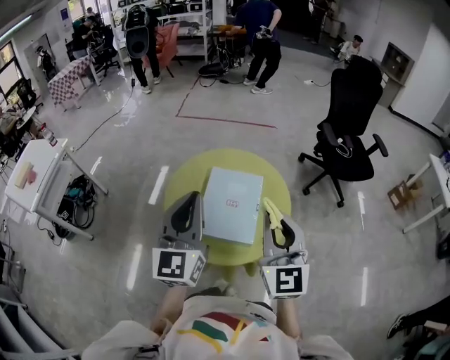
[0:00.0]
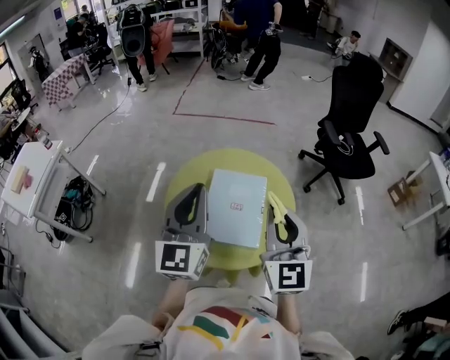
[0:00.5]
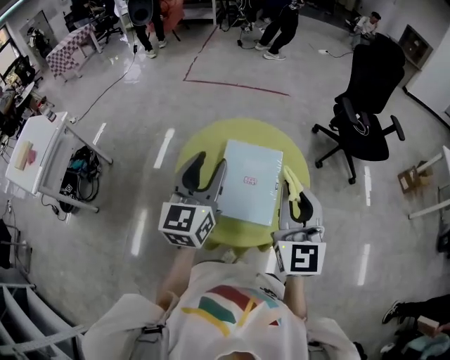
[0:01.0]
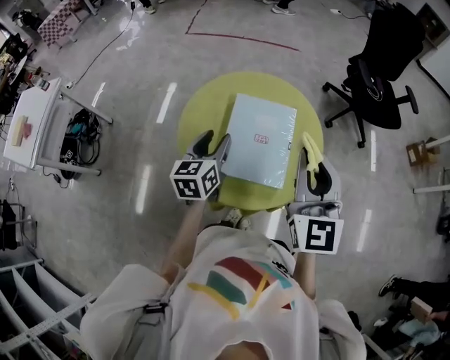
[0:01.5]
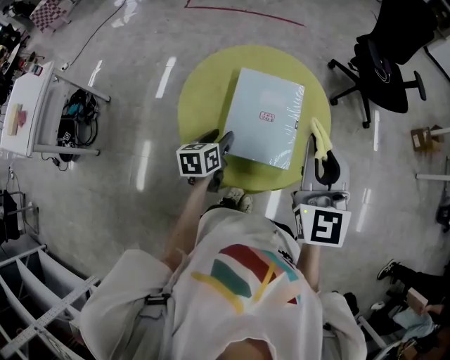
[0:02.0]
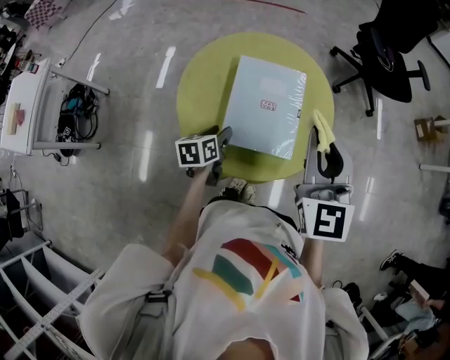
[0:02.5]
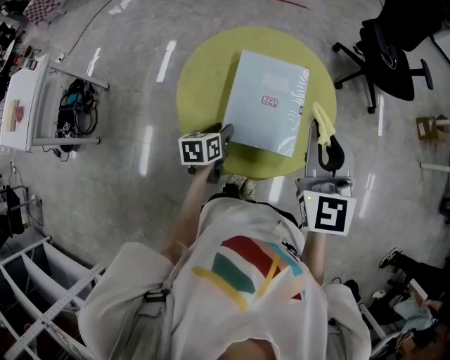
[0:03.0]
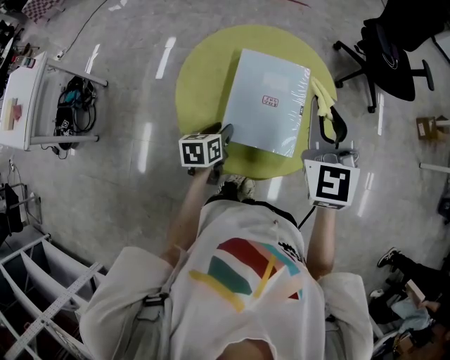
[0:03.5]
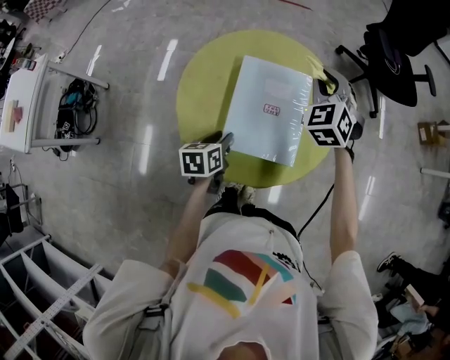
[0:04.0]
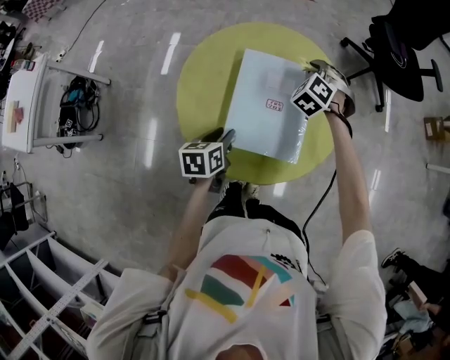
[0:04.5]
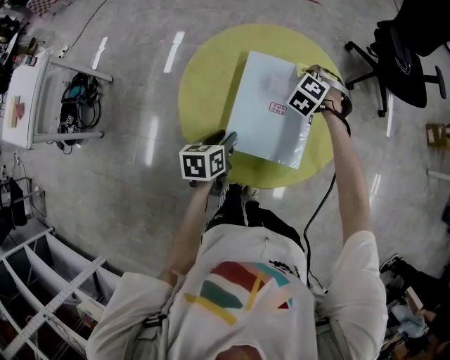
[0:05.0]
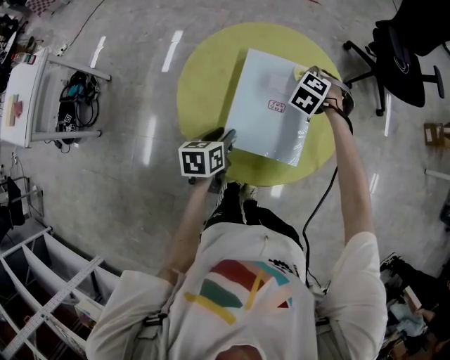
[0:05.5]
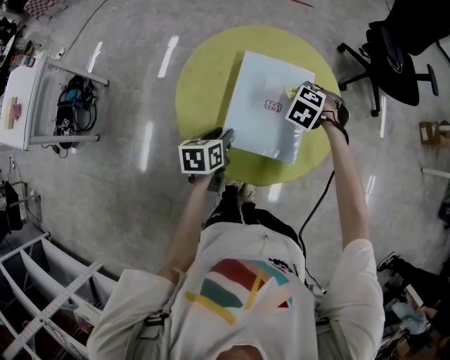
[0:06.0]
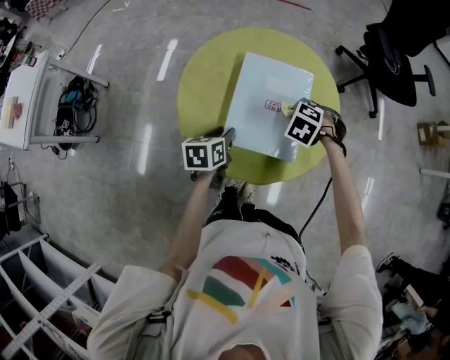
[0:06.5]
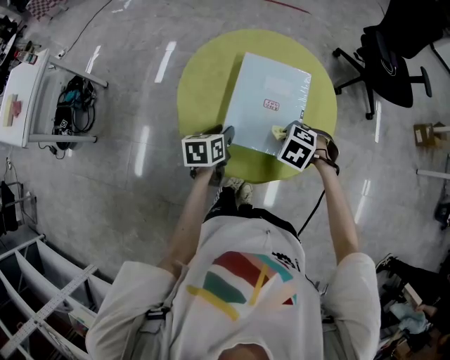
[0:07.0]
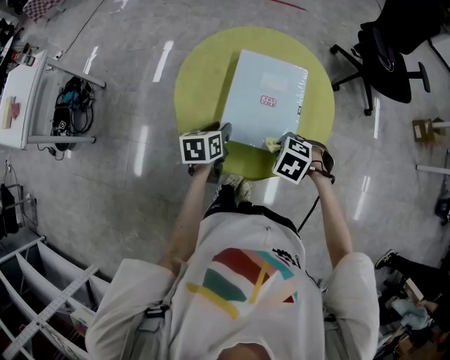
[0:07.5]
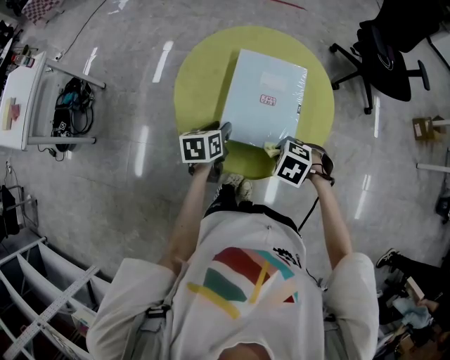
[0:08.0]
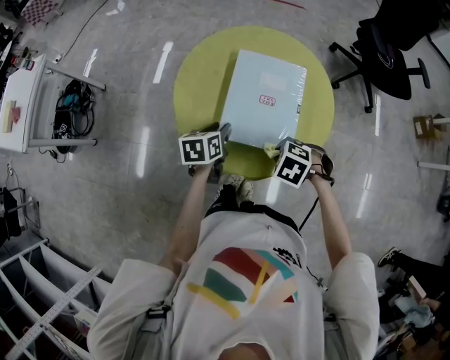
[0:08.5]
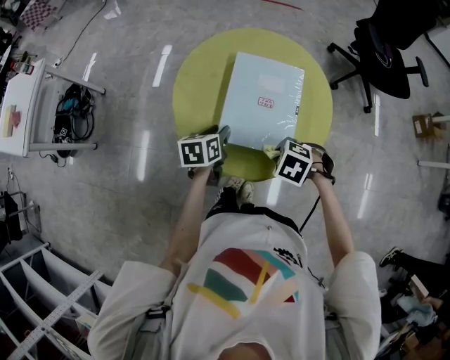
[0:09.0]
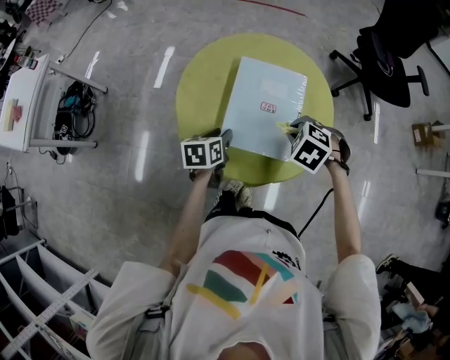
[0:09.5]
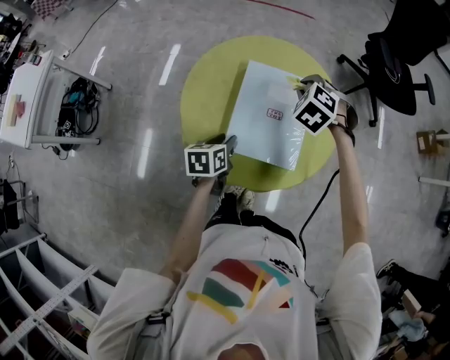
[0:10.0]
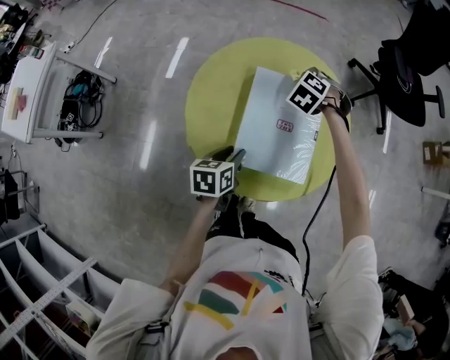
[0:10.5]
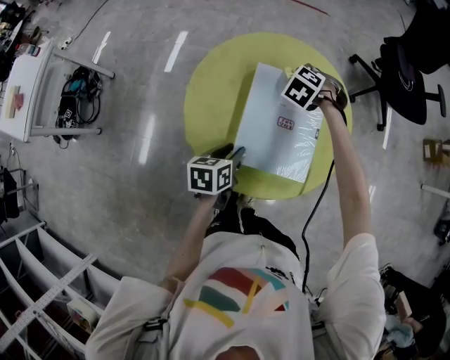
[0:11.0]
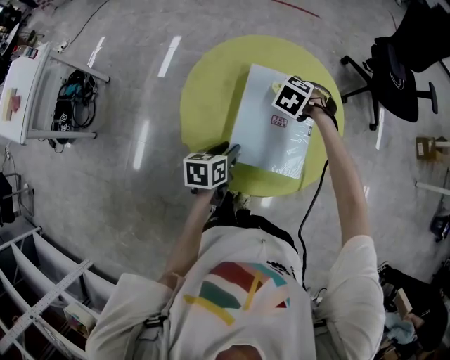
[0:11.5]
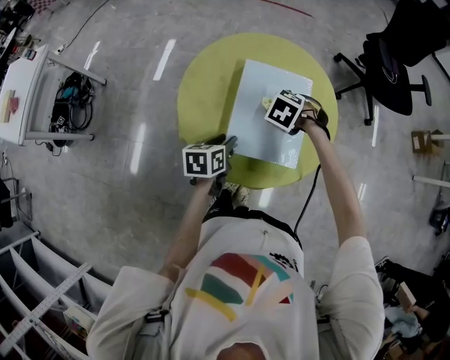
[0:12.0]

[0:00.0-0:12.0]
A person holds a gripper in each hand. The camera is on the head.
0:00.0 to 0:02.0: The left gripper goes roughly 35 cm downward, points its fingers approximately 50 degrees further downward, and opens, while the right gripper shifts some 5 cm forward.
0:02.0 to 0:04.0: The right gripper heads forward and downward, covering approximately 25 cm, and turns by some 40 degrees.
0:04.0 to 0:06.0: The right gripper travels downward by approximately 20 cm, and angles its fingers downward, by some 40 degrees.
0:06.0 to 0:08.0: The right gripper ends up approximately 20 cm from where it was, and changes its angle by some 20 degrees.
0:08.0 to 0:10.0: The right gripper moves some 25 cm, and swivels some 30 degrees.
0:10.0 to 0:12.0: The right gripper shifts approximately 10 cm downward, and turns by some 20 degrees.

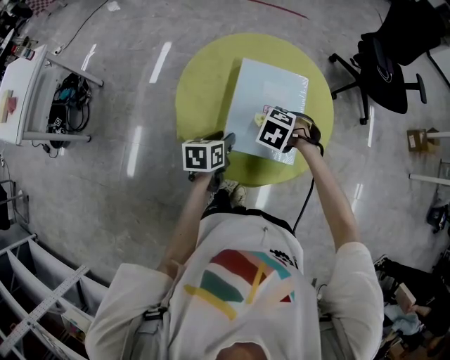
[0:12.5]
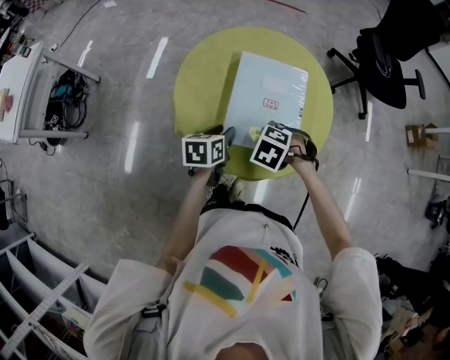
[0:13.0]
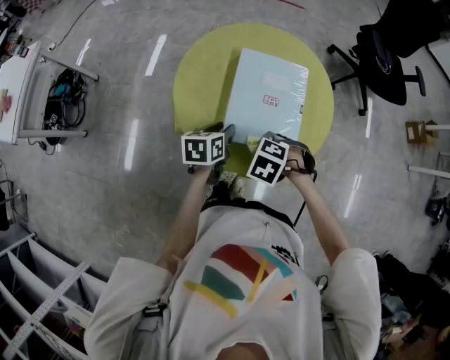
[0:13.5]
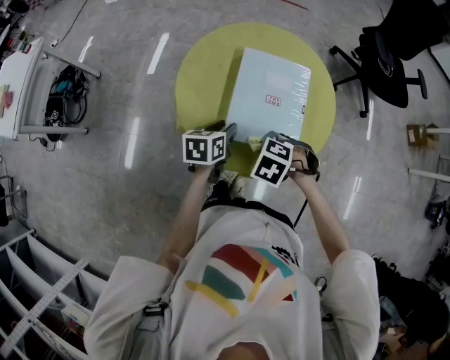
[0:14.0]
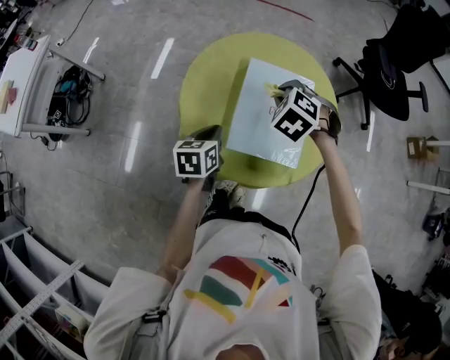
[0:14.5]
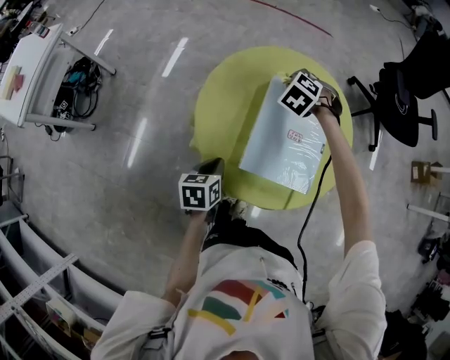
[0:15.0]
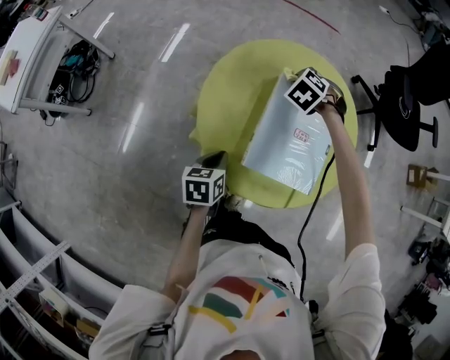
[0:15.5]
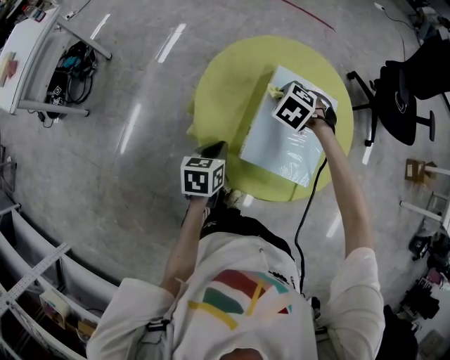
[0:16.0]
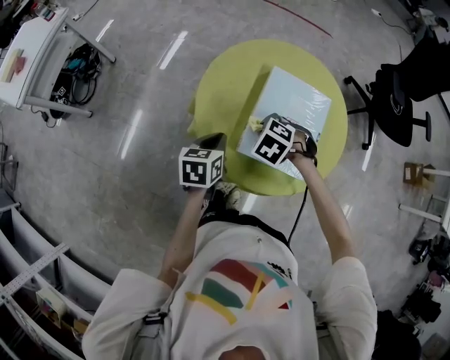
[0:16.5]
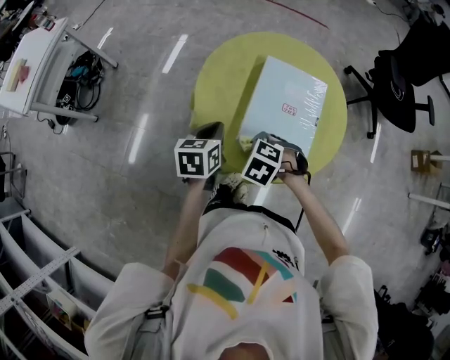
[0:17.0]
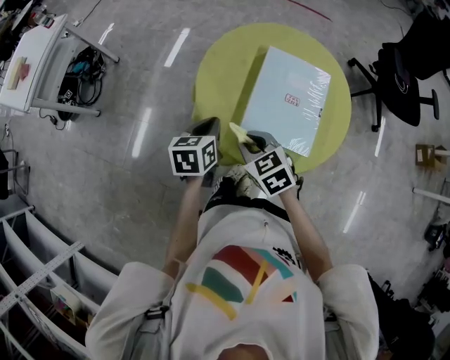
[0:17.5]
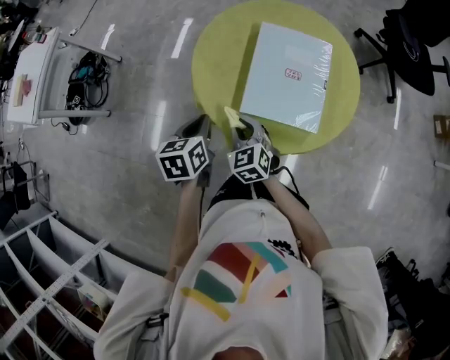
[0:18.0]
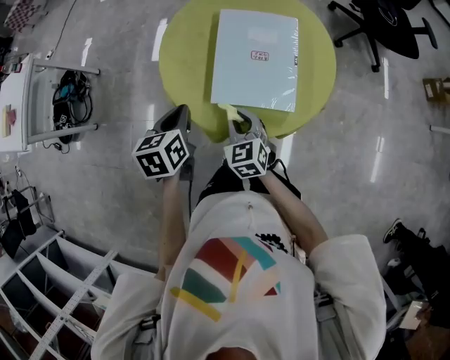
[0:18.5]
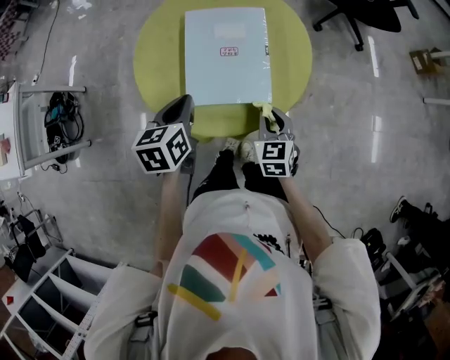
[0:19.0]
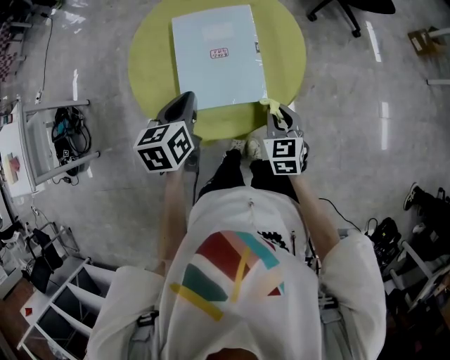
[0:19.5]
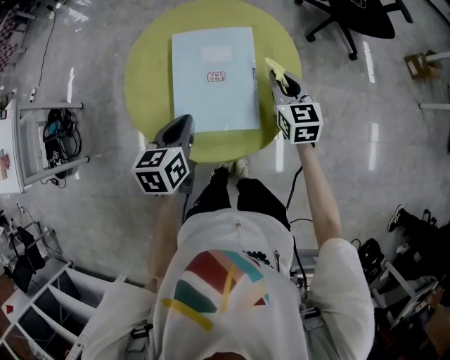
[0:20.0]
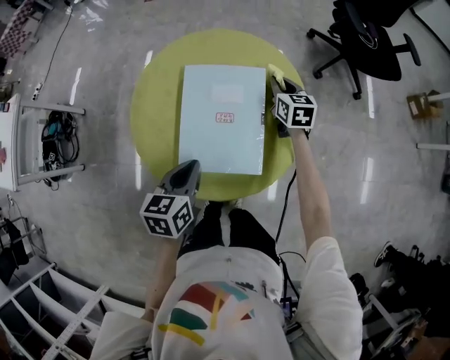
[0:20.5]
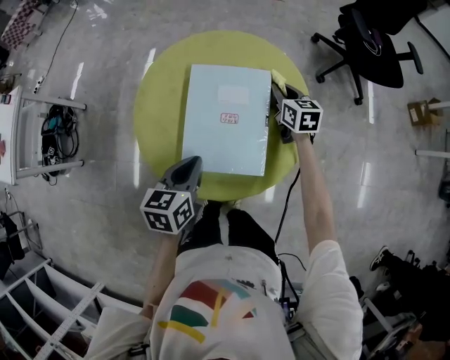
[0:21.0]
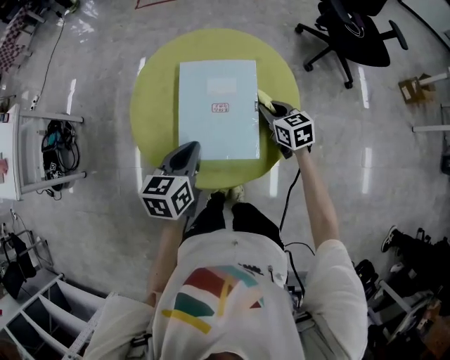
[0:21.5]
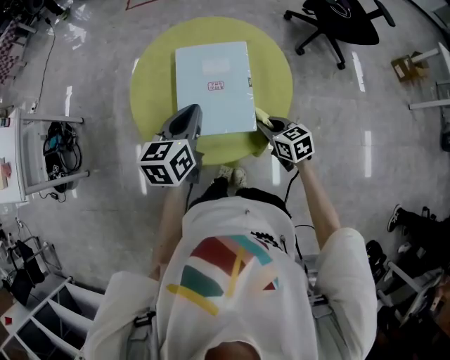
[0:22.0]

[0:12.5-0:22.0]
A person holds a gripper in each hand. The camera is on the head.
0:12.5 to 0:14.5: The right gripper heads upward, covering approximately 10 cm, and rotates about 20 degrees. The left gripper ends up approximately 5 cm from where it was, and closes.
0:14.5 to 0:16.5: The right gripper shifts by some 15 cm.
0:16.5 to 0:18.0: The left gripper changes place by about 5 cm. The right gripper changes place by roughly 10 cm, and tilts its fingers some 40 degrees upward.
0:18.0 to 0:20.0: The left gripper moves to the right and forward, about 15 cm; the right gripper is displaced to the right and forward by some 35 cm, and swivels approximately 30 degrees.
0:20.0 to 0:22.0: The left gripper travels upward by roughly 5 cm. The right gripper moves backward and downward, roughly 15 cm, and changes its angle by about 30 degrees.

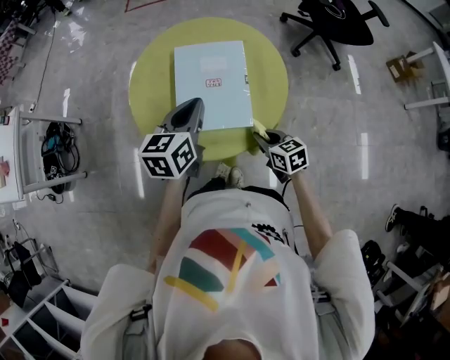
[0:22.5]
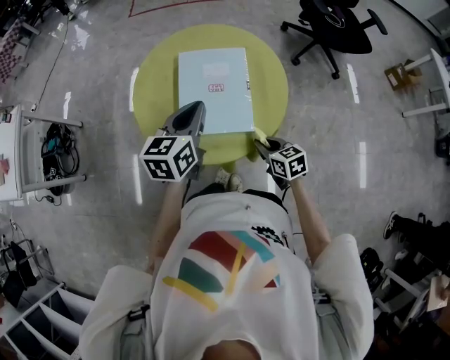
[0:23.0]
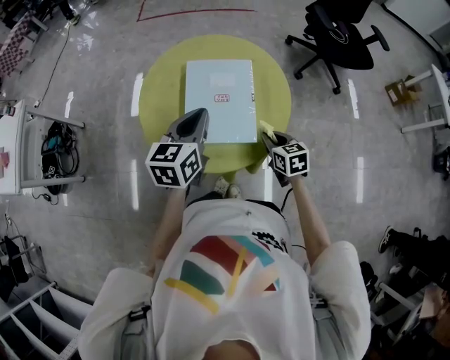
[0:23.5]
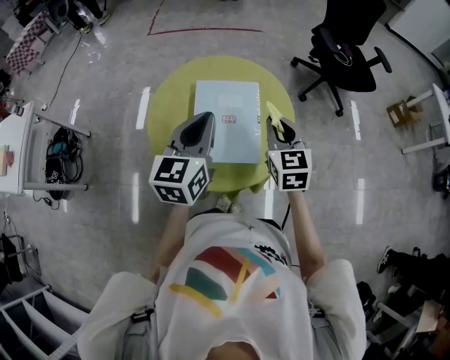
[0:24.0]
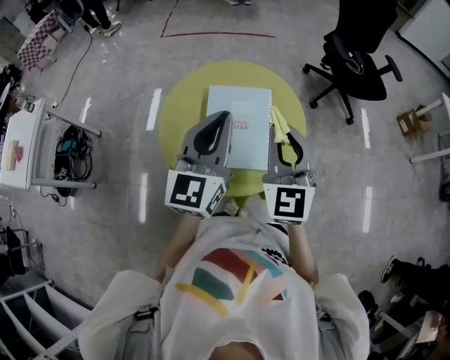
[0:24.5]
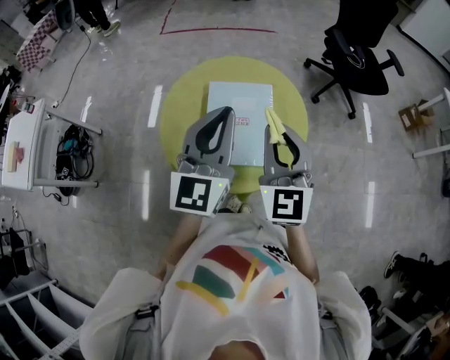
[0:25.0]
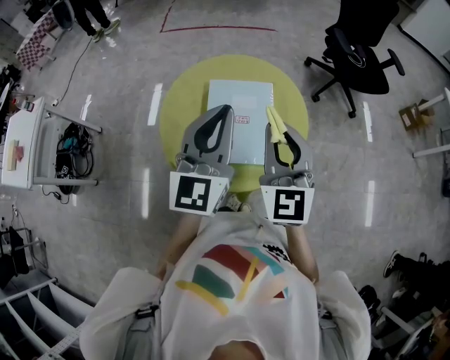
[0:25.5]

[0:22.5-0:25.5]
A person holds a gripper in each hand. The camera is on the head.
0:22.5 to 0:24.0: The left gripper shifts roughly 10 cm upward; the right gripper travels upward and forward by some 25 cm, and rotates about 40 degrees.
0:24.0 to 0:25.5: The left gripper travels upward by roughly 5 cm, and swivels about 20 degrees. Meanwhile the right gripper moves upward, backward and to the left, roughly 15 cm, and swivels about 20 degrees.

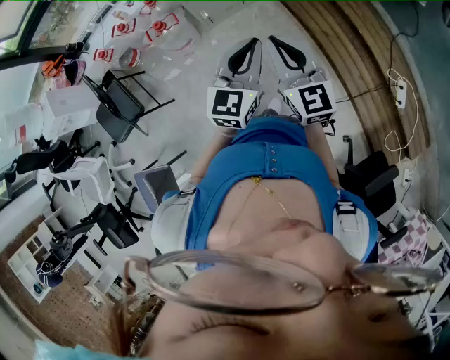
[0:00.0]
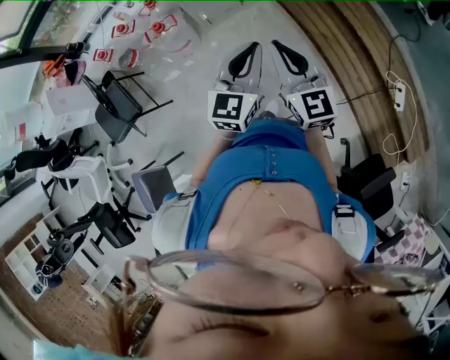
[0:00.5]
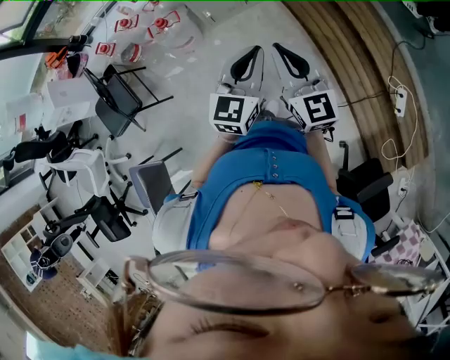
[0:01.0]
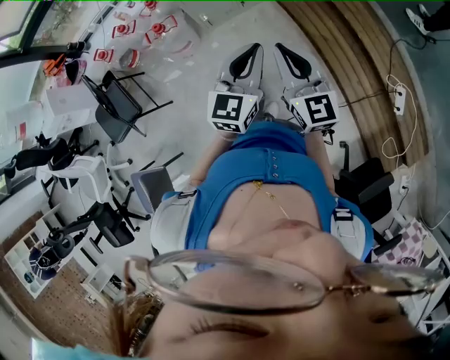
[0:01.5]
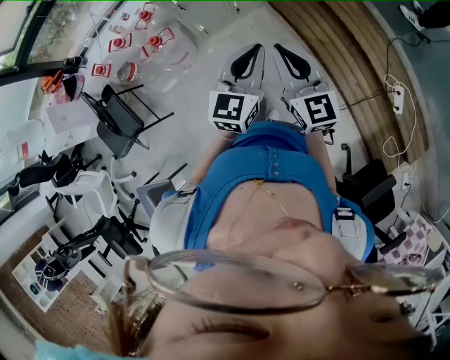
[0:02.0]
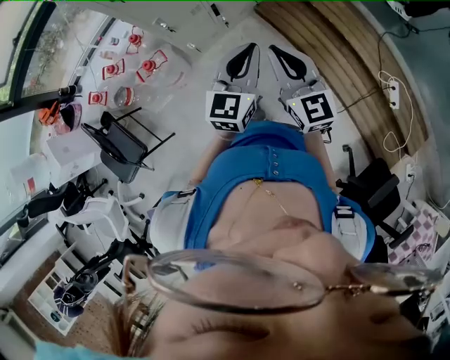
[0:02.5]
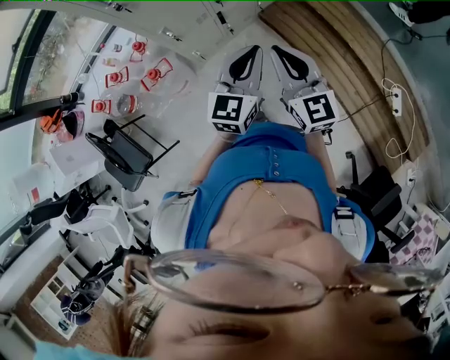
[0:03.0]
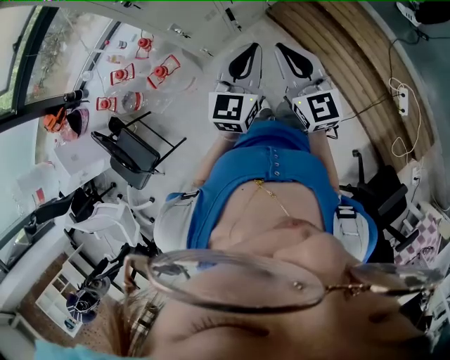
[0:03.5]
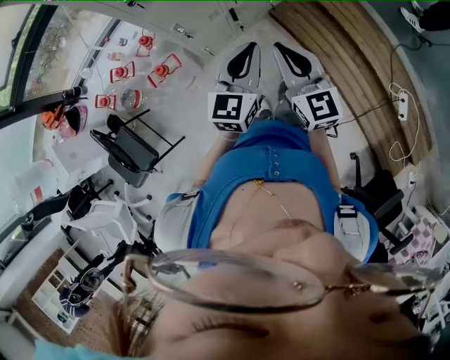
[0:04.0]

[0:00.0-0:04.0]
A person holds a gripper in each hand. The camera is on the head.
0:00.0 to 0:02.0: The right gripper changes place by some 5 cm. Meanwhile the left gripper heads forward, covering some 5 cm.
0:02.0 to 0:04.0: The grippers both shift forward and to the left by about 20 cm.
